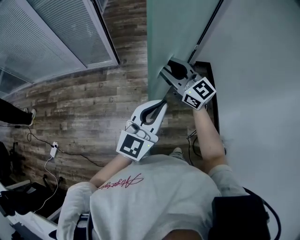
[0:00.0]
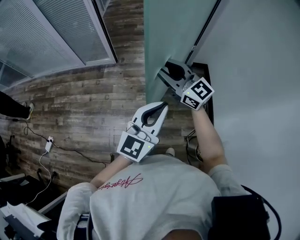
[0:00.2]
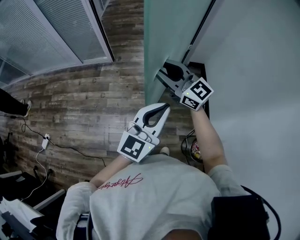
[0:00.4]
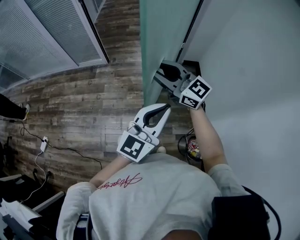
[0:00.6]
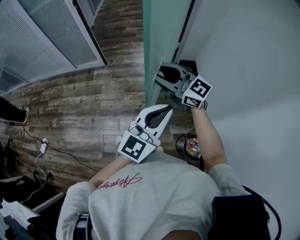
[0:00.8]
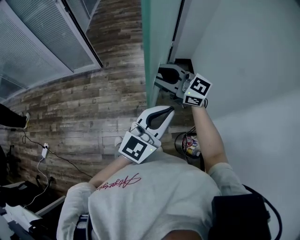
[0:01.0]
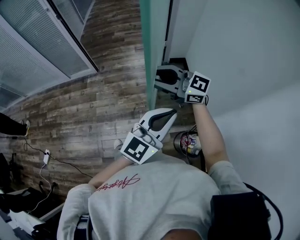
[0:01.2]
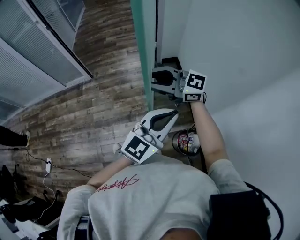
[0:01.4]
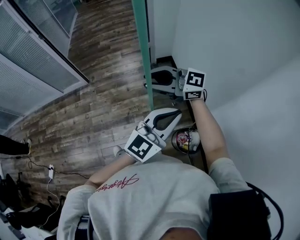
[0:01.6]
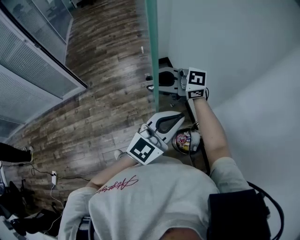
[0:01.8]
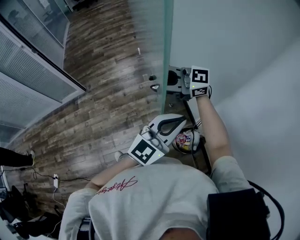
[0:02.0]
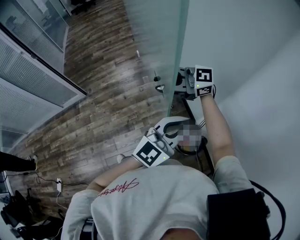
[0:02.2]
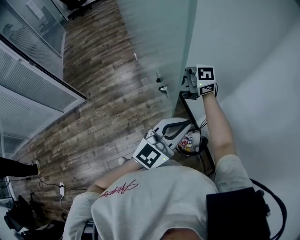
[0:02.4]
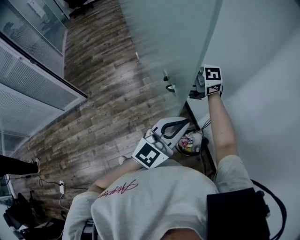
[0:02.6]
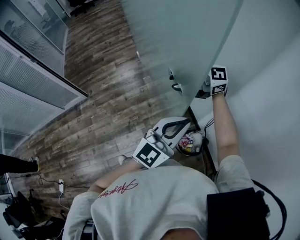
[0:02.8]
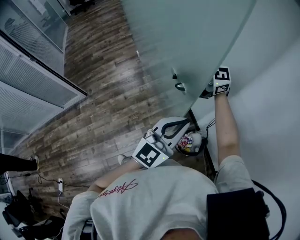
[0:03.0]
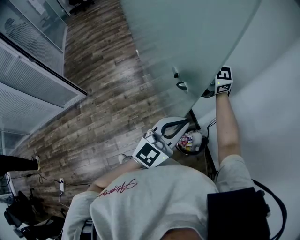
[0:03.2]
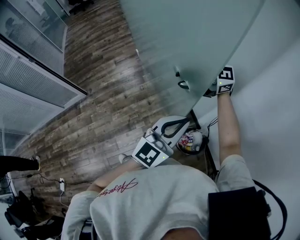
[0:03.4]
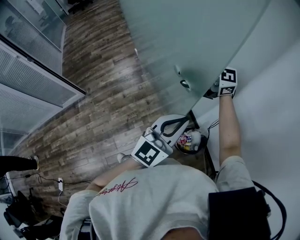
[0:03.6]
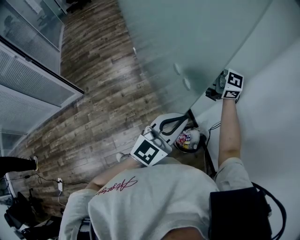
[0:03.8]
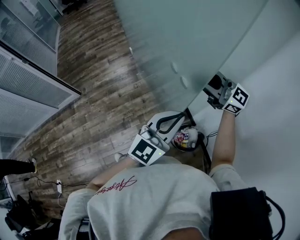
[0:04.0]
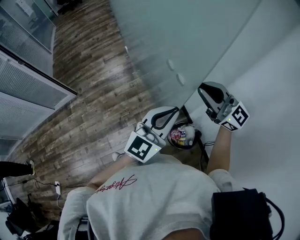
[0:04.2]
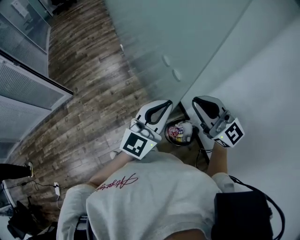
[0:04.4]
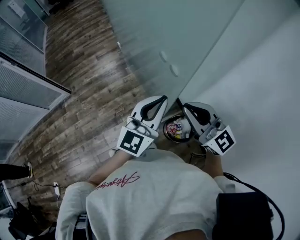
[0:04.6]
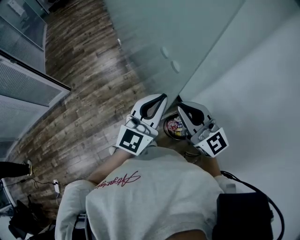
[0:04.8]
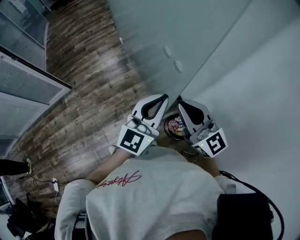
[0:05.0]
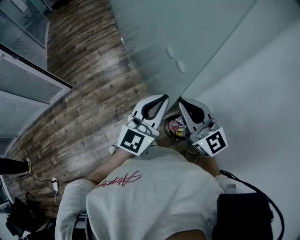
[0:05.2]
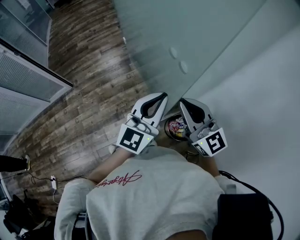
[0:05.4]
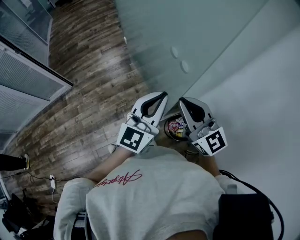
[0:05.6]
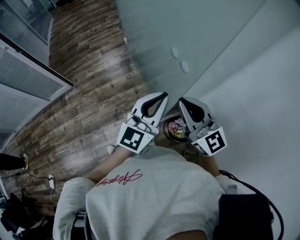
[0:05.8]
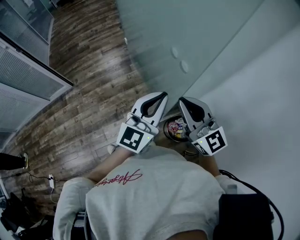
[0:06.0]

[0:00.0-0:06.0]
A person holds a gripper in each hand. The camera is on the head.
0:00.0 to 0:01.6: The left gripper shifts by some 35 cm, and rotates roughly 30 degrees. Meanwhile the right gripper changes place by approximately 30 cm, and swivels about 20 degrees.
0:01.6 to 0:03.0: The right gripper changes place by roughly 15 cm. Meanwhile the left gripper shifts by approximately 5 cm.
0:03.0 to 0:04.4: The right gripper moves roughly 15 cm, turns by some 50 degrees, and closes.
0:04.4 to 0:06.0: The right gripper is displaced to the left by approximately 5 cm.

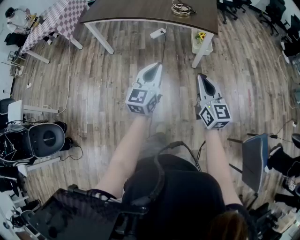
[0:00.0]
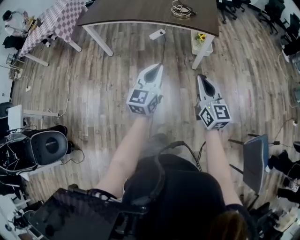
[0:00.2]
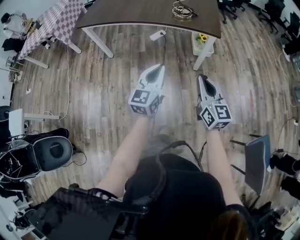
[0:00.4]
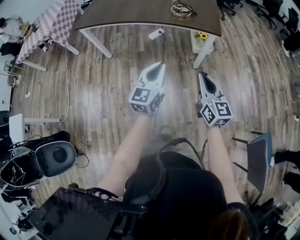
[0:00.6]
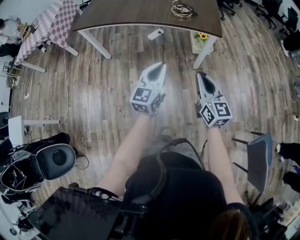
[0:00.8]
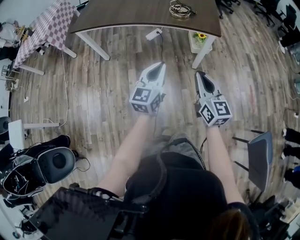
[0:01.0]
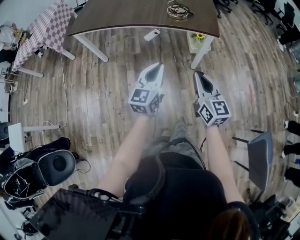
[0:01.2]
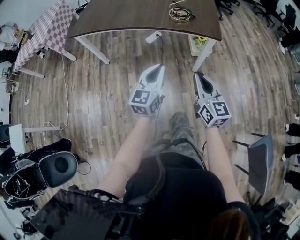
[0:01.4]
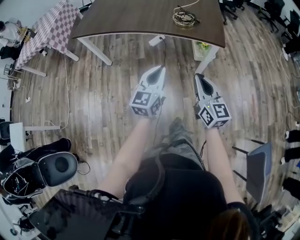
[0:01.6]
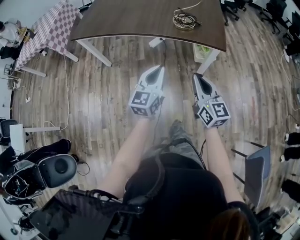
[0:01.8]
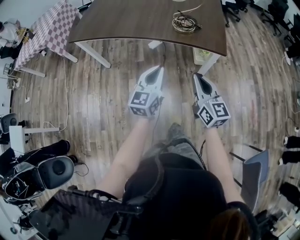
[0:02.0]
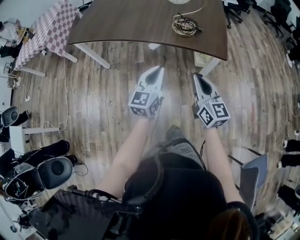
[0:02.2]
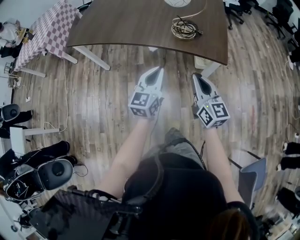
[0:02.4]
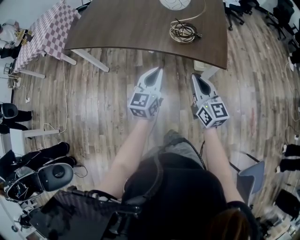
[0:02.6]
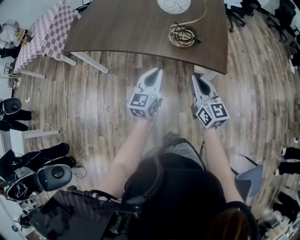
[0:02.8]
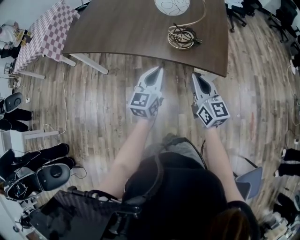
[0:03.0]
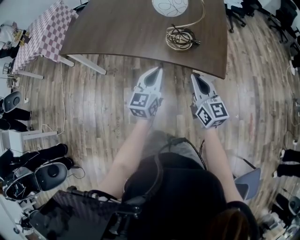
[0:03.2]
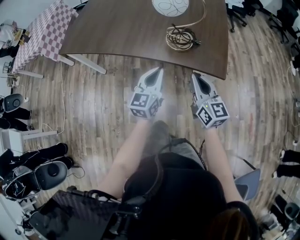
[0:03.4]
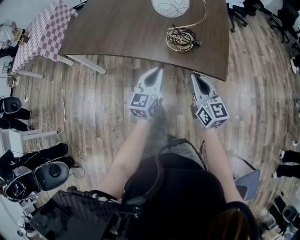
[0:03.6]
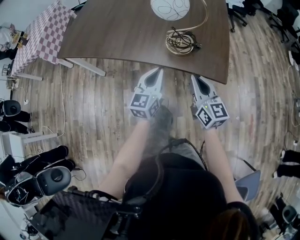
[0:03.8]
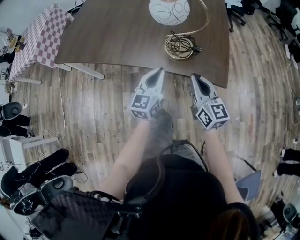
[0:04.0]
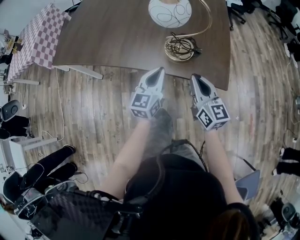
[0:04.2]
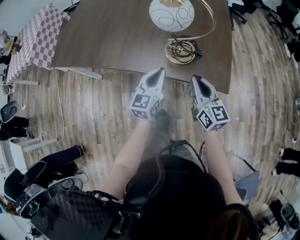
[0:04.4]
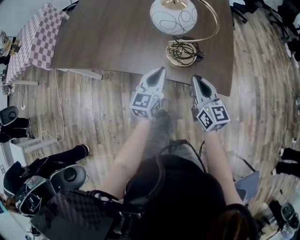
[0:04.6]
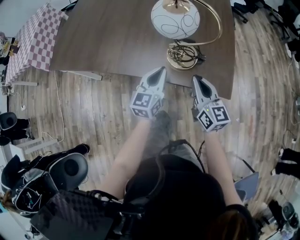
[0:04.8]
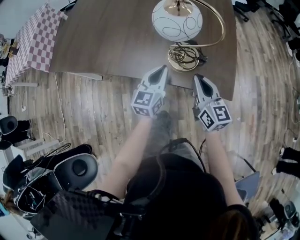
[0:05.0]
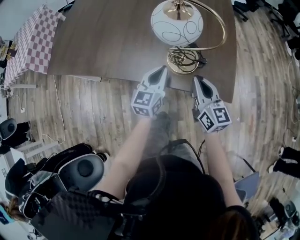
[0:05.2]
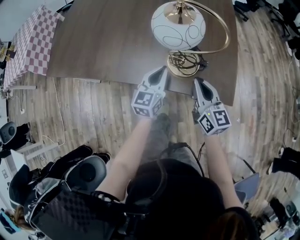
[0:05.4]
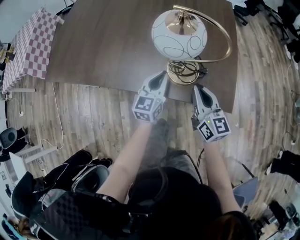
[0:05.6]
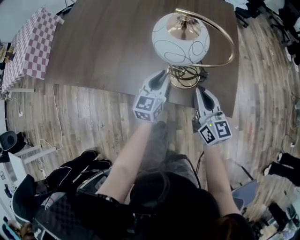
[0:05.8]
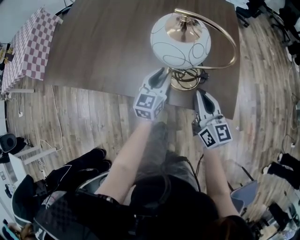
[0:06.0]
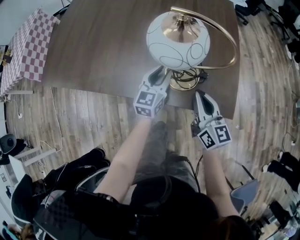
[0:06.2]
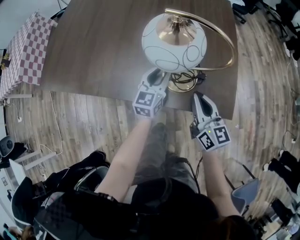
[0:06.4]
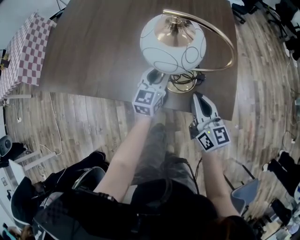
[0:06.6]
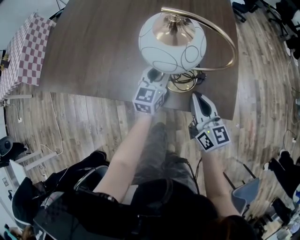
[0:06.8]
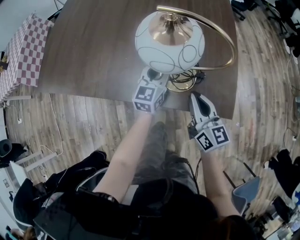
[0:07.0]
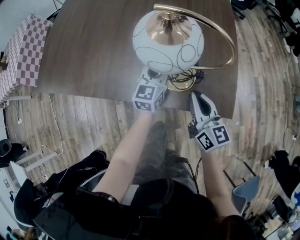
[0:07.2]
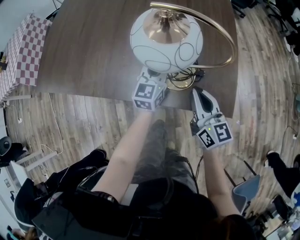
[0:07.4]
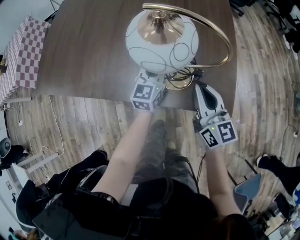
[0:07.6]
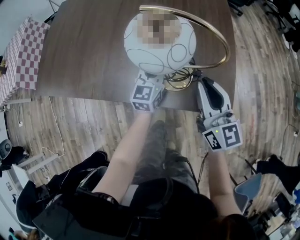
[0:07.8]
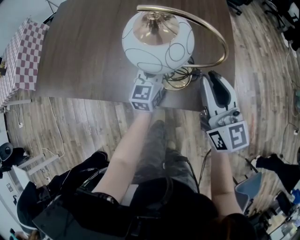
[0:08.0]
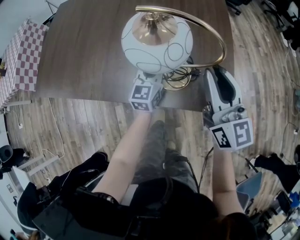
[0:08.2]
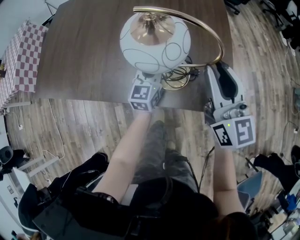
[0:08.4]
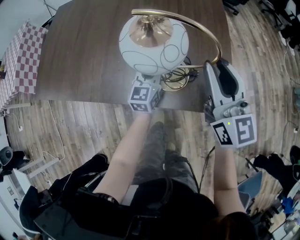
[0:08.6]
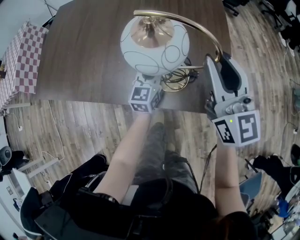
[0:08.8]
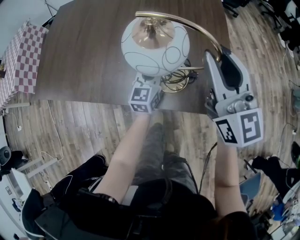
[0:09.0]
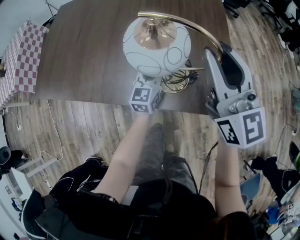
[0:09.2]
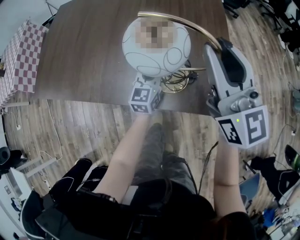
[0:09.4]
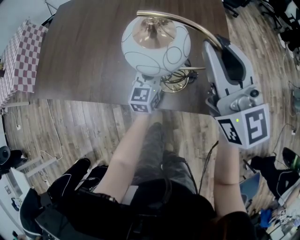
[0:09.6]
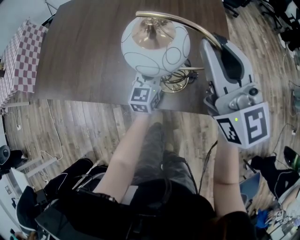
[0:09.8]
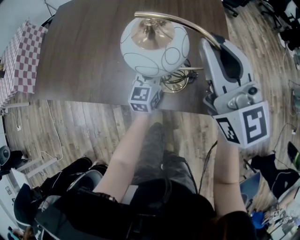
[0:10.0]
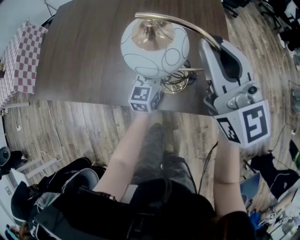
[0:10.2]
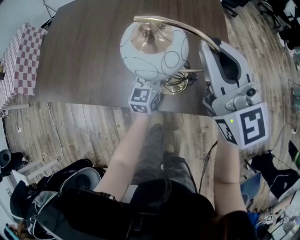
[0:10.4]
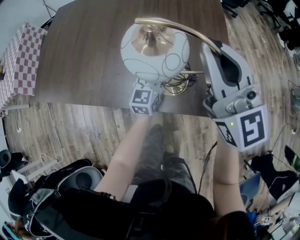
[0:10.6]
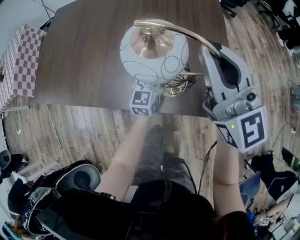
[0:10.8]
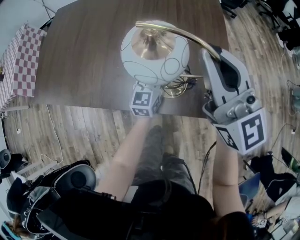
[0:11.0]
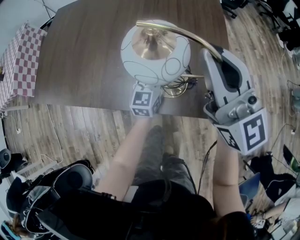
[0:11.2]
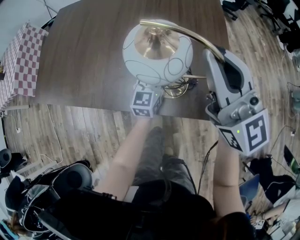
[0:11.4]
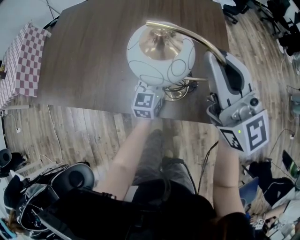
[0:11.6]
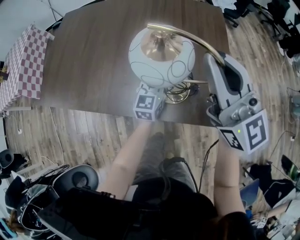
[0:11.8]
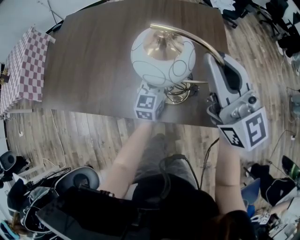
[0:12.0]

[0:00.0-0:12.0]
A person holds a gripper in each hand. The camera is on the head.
0:00.0 to 0:01.6: The grippers both shift forward by approximately 15 cm.
0:01.6 to 0:03.0: Both grippers travel together forward, roughly 20 cm.
0:03.0 to 0:04.4: Both grippers travel together forward, some 10 cm.
0:04.4 to 0:06.0: The right gripper heads forward, covering about 5 cm. The left gripper moves forward and downward, roughly 15 cm, and opens.
0:06.0 to 0:07.6: The left gripper changes place by about 5 cm.
0:07.6 to 0:09.0: The right gripper is displaced upward by approximately 15 cm, and opens its fingers.
0:09.0 to 0:10.4: The right gripper closes.
0:10.4 to 0:12.0: The grippers move only a little.

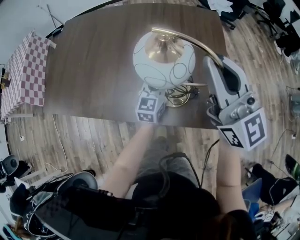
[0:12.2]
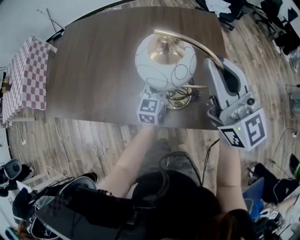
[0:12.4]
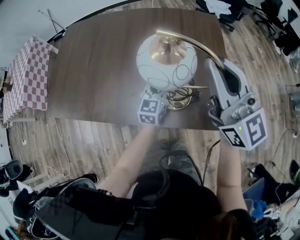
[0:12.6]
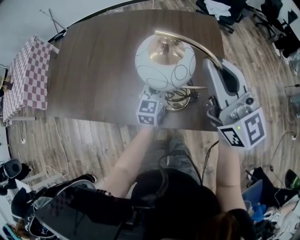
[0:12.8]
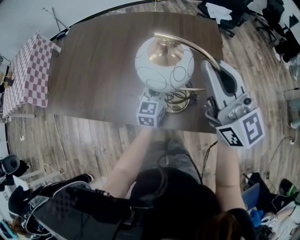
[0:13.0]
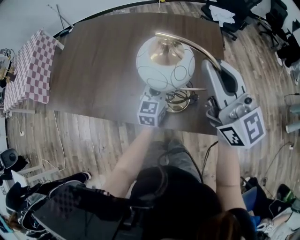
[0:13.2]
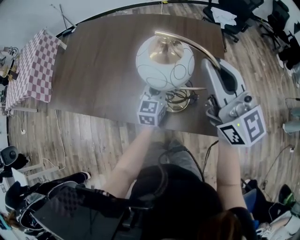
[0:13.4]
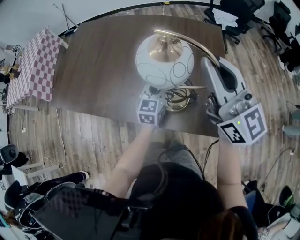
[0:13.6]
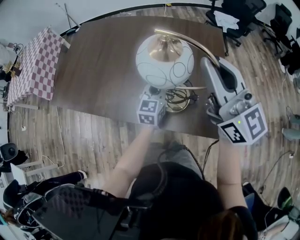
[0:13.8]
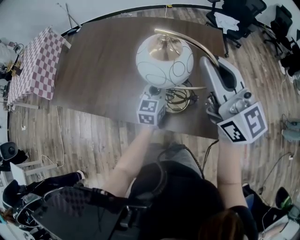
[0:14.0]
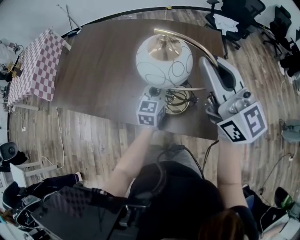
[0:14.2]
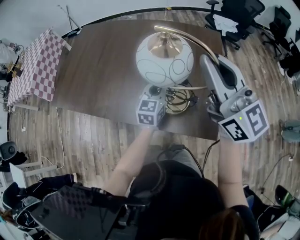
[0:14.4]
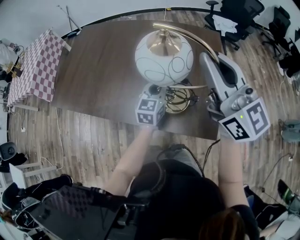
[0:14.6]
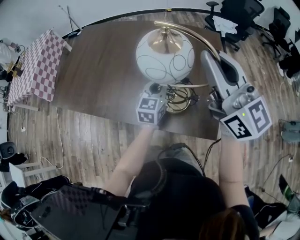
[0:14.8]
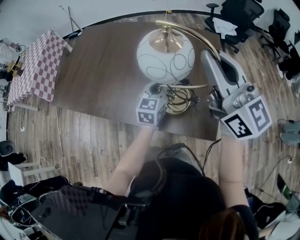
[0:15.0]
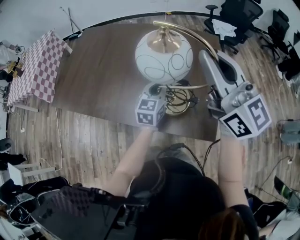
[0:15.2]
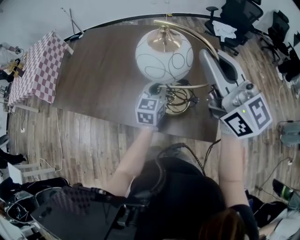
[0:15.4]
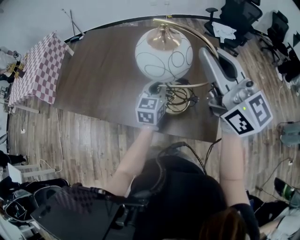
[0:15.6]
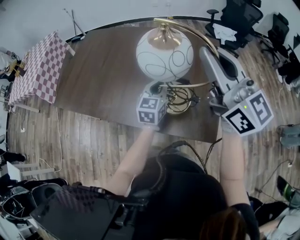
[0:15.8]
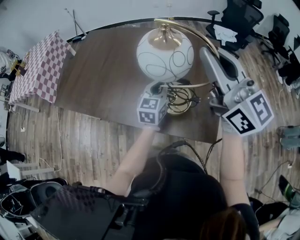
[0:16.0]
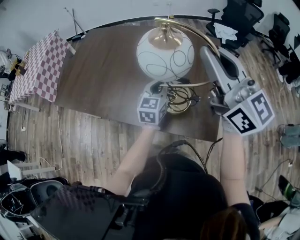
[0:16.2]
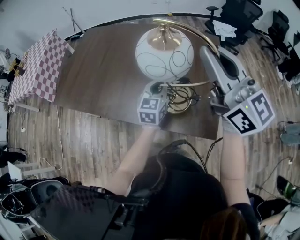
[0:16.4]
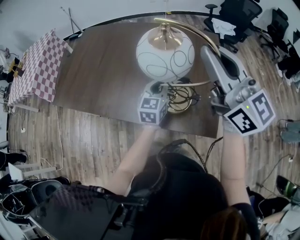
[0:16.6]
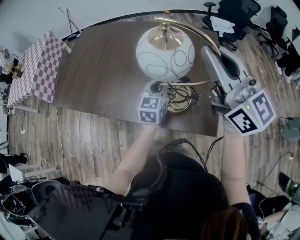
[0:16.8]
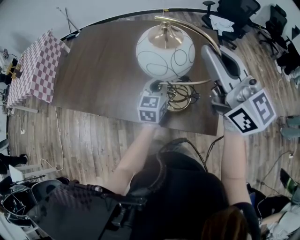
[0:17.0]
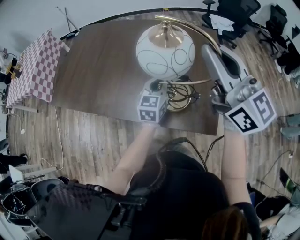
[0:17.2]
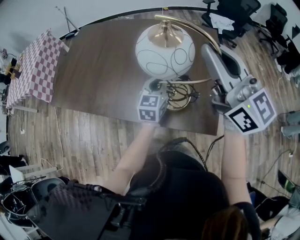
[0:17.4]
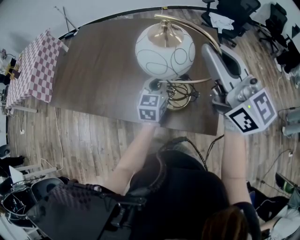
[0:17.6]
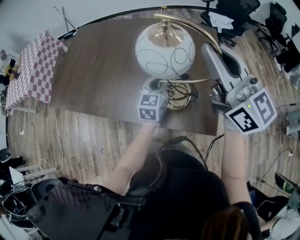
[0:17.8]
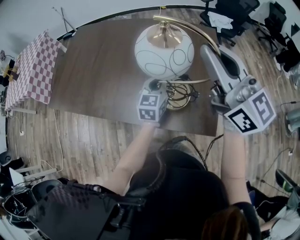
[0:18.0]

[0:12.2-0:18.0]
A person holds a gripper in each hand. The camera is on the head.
0:12.2 to 0:13.6: The grippers stay close to where they were, moving slightly.
0:13.6 to 0:18.0: There are only small adjustments of the grippers.
